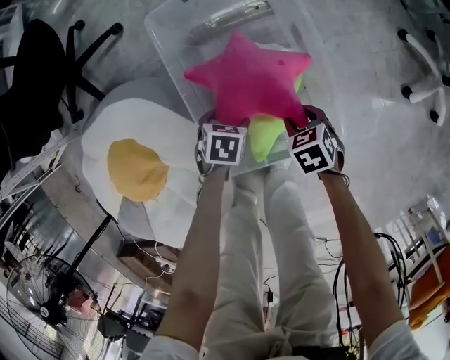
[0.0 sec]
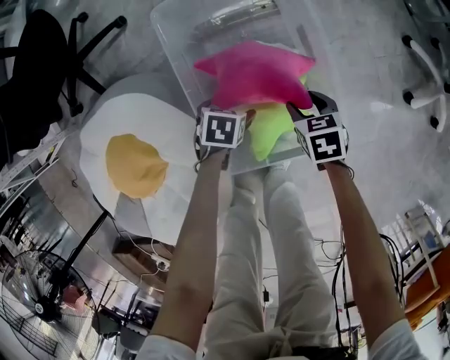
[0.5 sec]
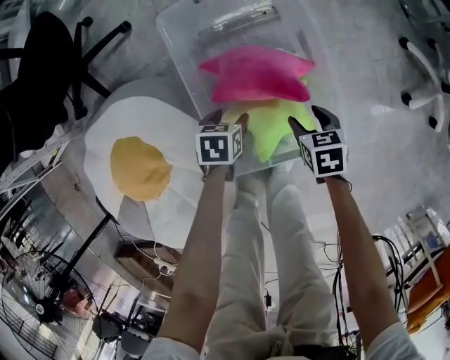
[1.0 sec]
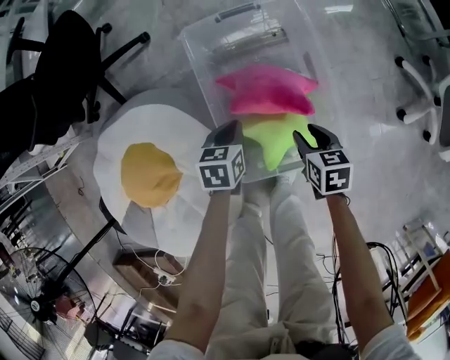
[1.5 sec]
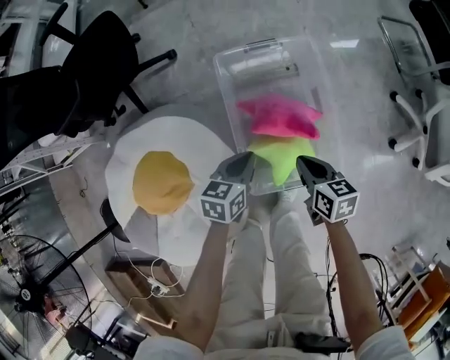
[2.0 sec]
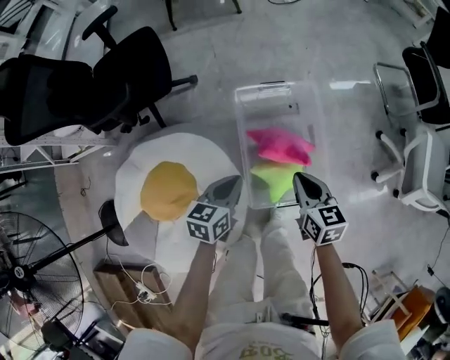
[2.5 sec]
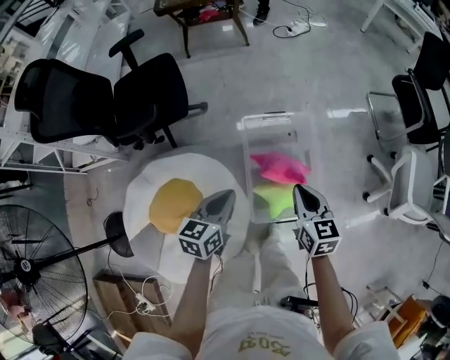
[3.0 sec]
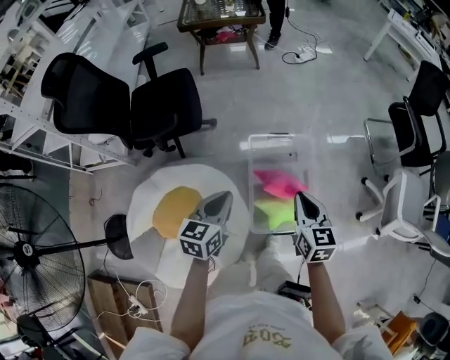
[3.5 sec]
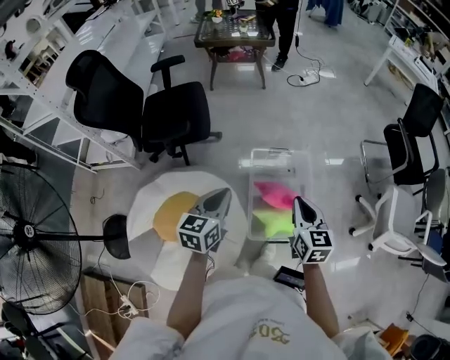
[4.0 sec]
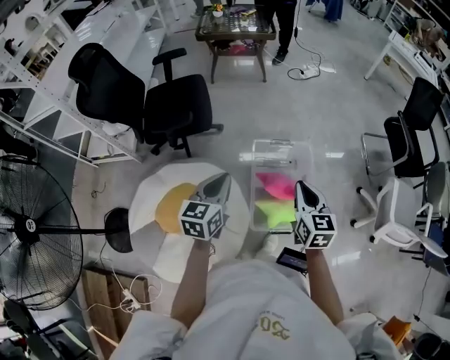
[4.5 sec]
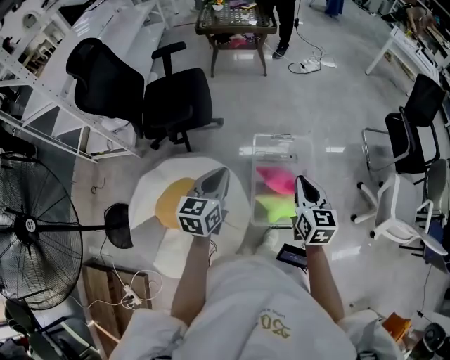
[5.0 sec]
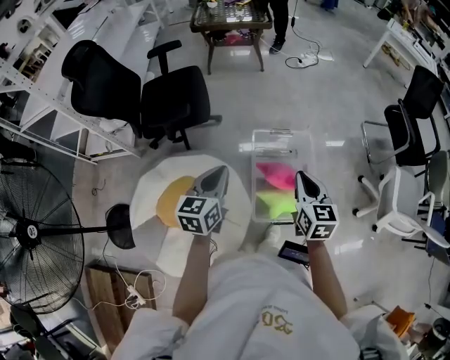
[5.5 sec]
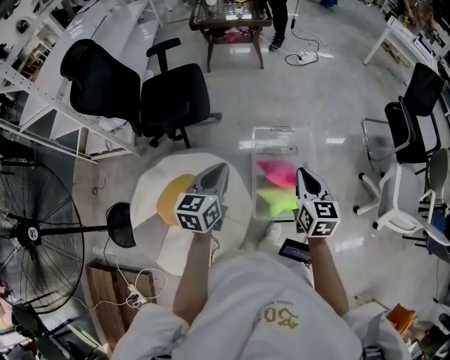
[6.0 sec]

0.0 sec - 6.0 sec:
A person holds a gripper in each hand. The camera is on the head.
0.0 sec - 2.0 sec: The two grippers go approximately 25 cm upward. The right gripper rotates roughly 30 degrees, and closes its fingers. The left gripper points its fingers some 40 degrees further upward, and closes up.
2.0 sec - 4.0 sec: Both grippers travel together upward, about 40 cm. The right gripper rotates approximately 30 degrees. Meanwhile the left gripper turns by approximately 30 degrees.
4.0 sec - 6.0 sec: The grippers make only small movements.

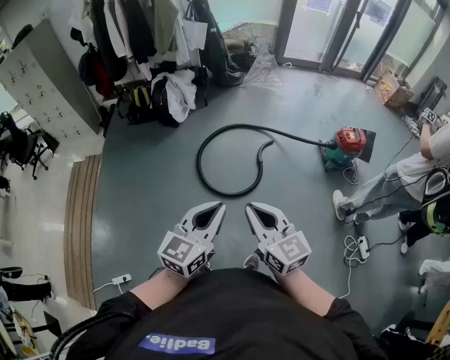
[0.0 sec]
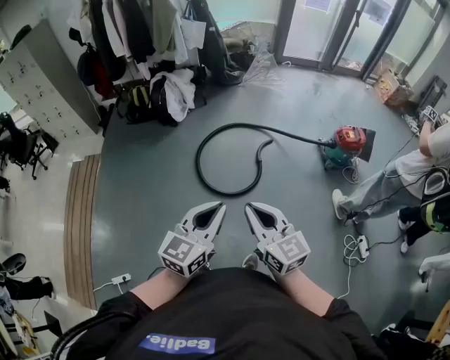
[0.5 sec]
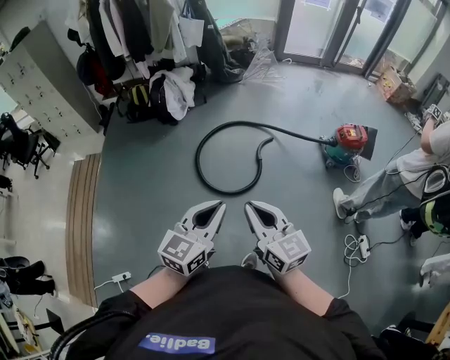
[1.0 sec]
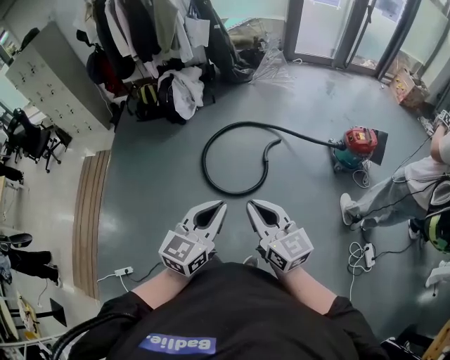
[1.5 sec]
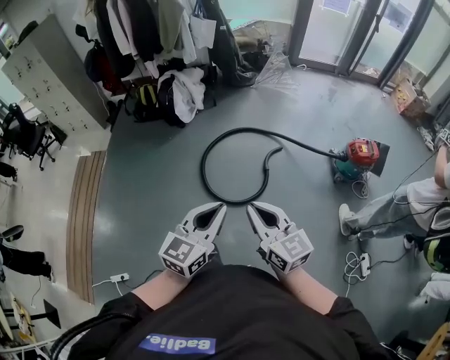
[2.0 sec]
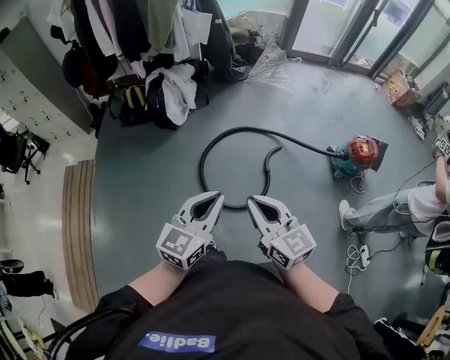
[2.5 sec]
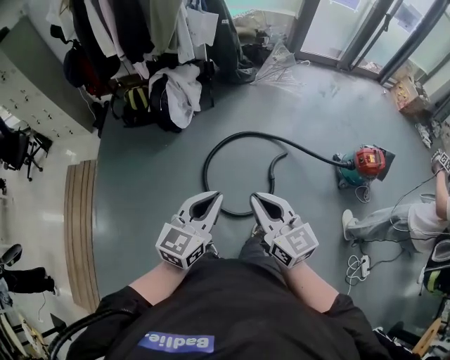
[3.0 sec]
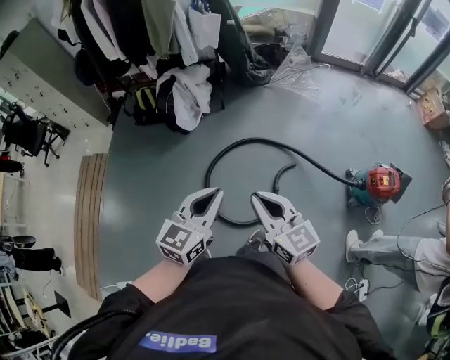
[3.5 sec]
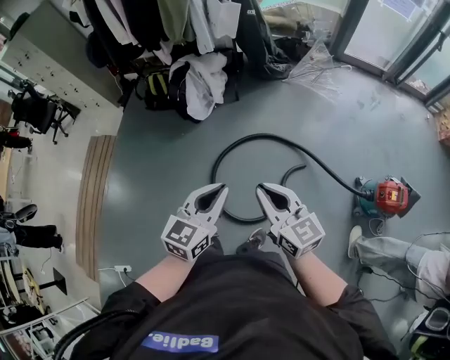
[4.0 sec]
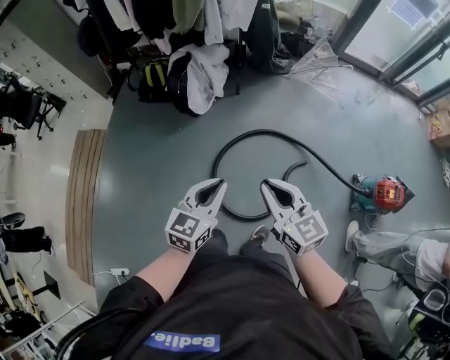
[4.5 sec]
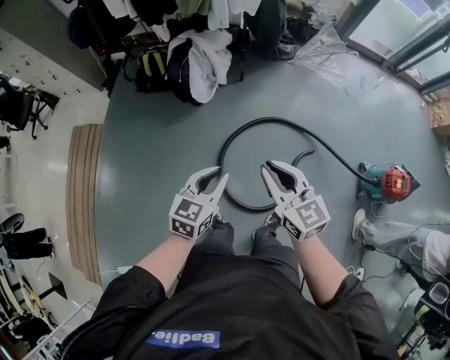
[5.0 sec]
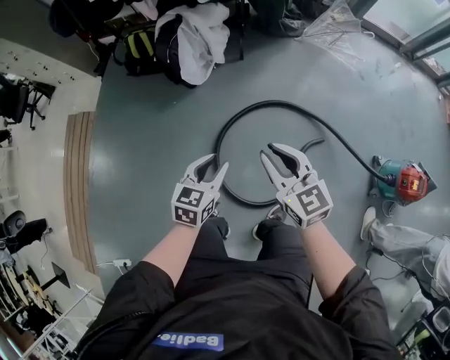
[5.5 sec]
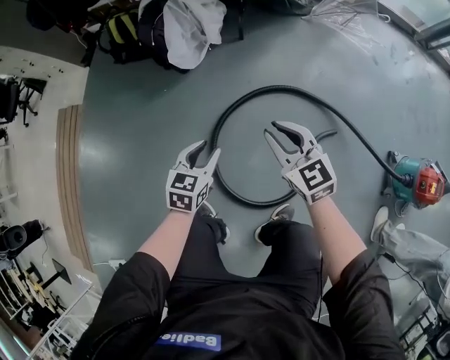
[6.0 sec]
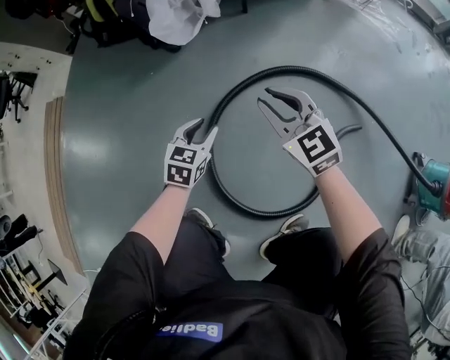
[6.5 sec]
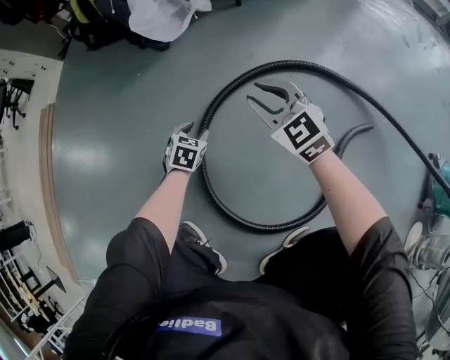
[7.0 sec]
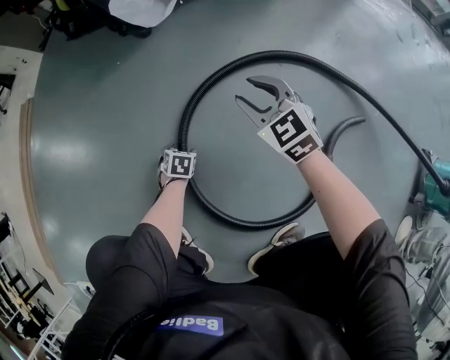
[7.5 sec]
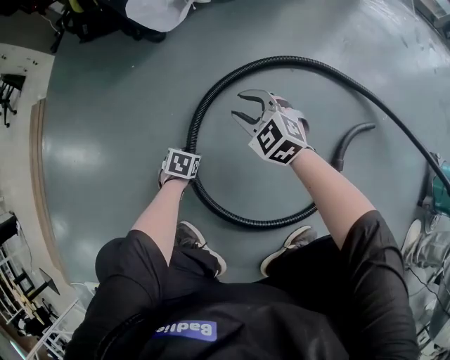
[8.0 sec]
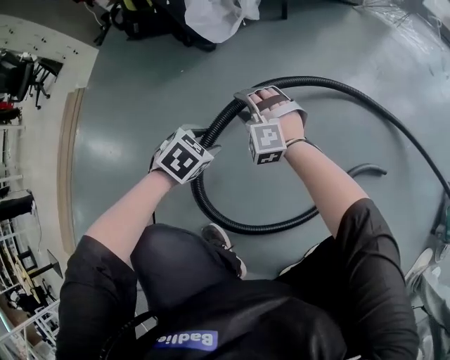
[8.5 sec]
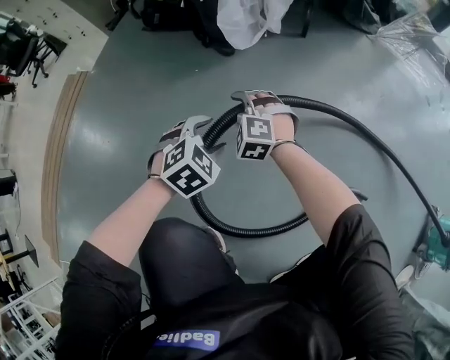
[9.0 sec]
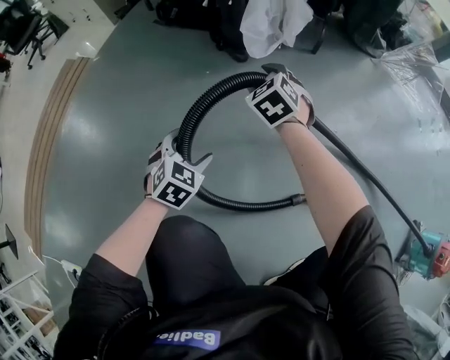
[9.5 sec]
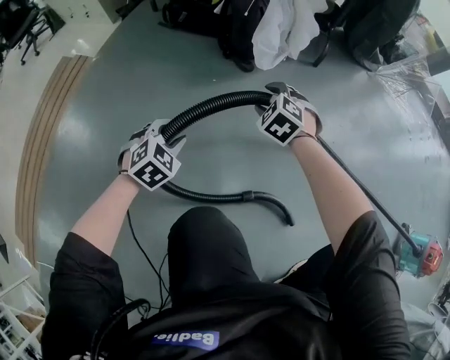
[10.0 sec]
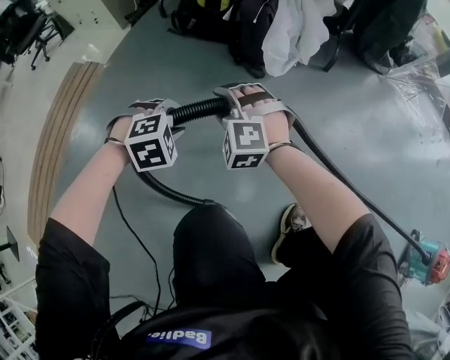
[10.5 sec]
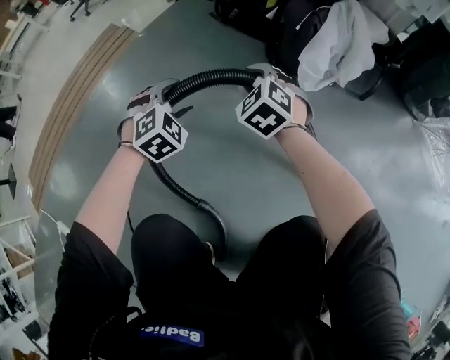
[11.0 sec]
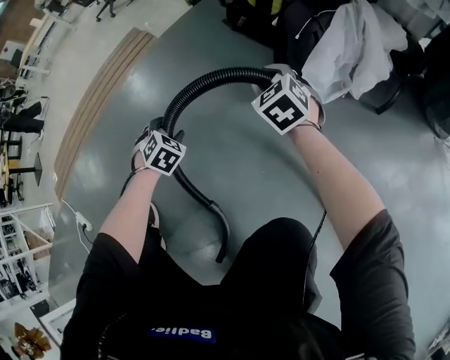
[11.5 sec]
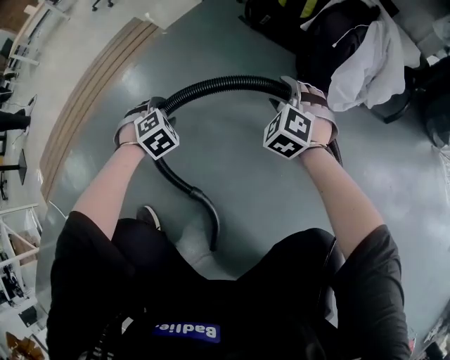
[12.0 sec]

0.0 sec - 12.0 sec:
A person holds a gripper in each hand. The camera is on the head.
0.0 sec - 2.0 sec: The grippers both shift forward by about 10 cm.
2.0 sec - 4.0 sec: Both grippers are carried forward, some 40 cm.
4.0 sec - 6.0 sec: Both grippers move downward and forward, approximately 50 cm. The left gripper swivels some 20 degrees; the right gripper turns by roughly 20 degrees.
6.0 sec - 8.0 sec: The two grippers go about 50 cm downward. The left gripper tilts its fingers some 40 degrees downward, while the right gripper rotates about 30 degrees.
8.0 sec - 10.0 sec: The right gripper ends up some 30 cm from where it was, and turns by about 30 degrees; the left gripper moves approximately 40 cm, rotates roughly 40 degrees, and opens, then closes once more.
10.0 sec - 12.0 sec: The left gripper ends up approximately 20 cm from where it was, and turns by approximately 40 degrees, while the right gripper changes place by approximately 20 cm, rotates roughly 30 degrees, and closes and opens again.

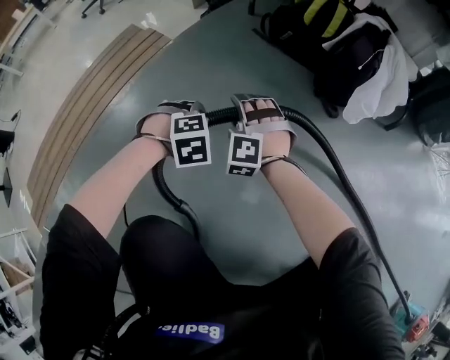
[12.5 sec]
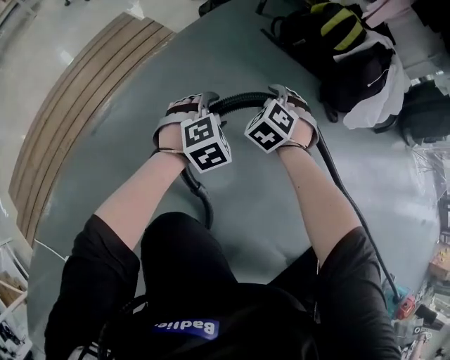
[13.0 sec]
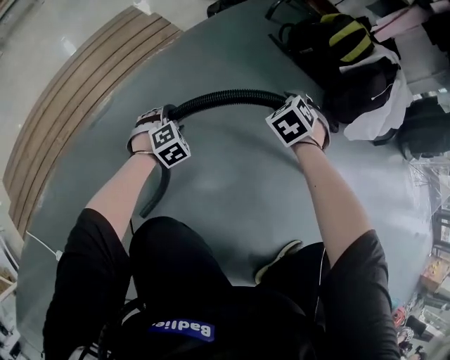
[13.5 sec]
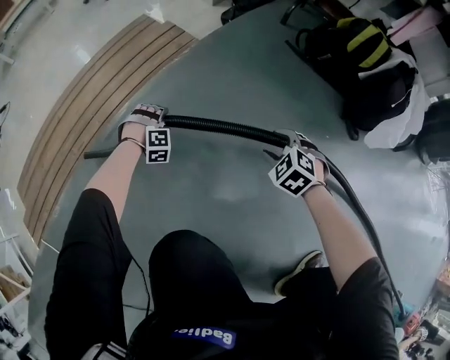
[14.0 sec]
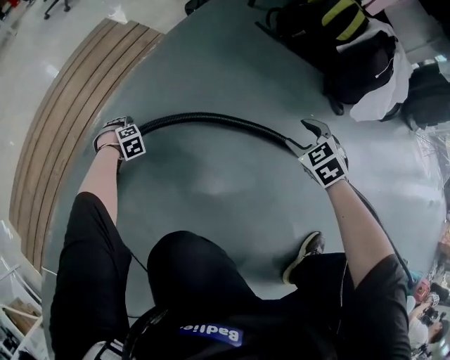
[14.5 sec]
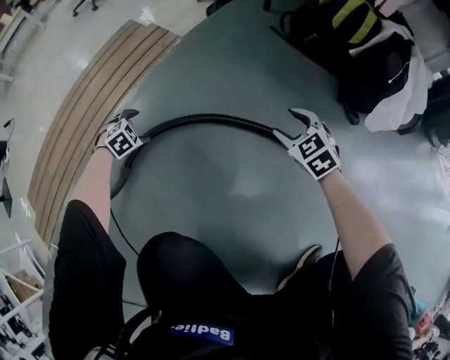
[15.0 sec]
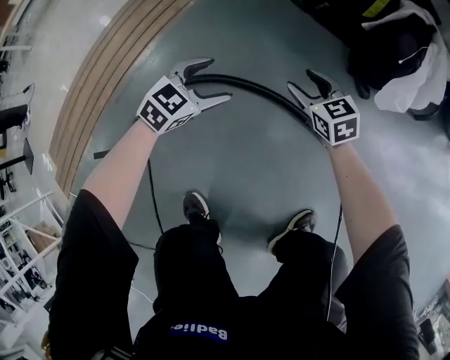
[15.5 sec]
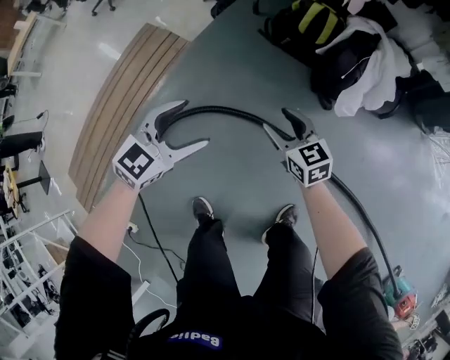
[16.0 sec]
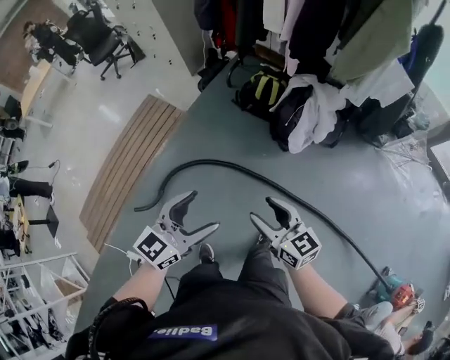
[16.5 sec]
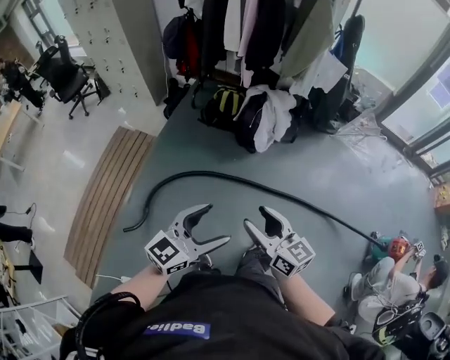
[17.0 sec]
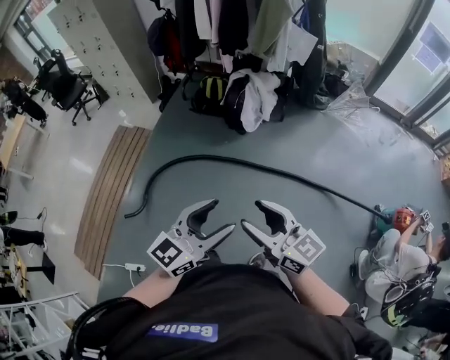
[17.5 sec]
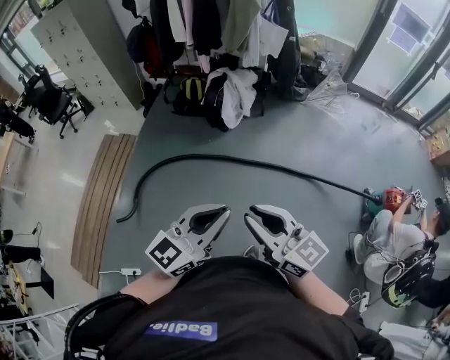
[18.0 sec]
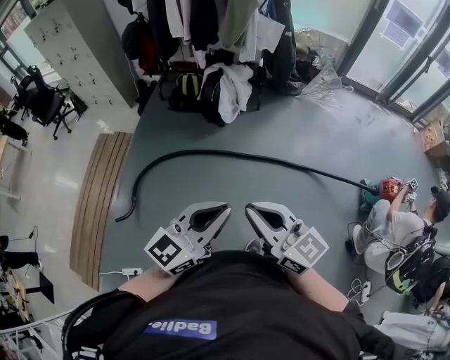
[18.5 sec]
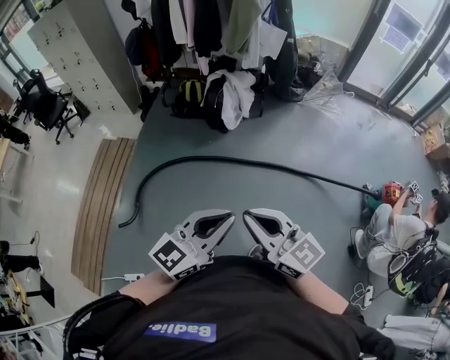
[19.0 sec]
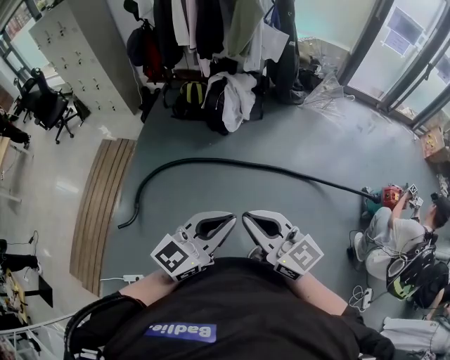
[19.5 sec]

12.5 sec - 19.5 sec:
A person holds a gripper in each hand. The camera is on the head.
12.5 sec - 14.5 sec: The left gripper shifts by approximately 50 cm, and opens its fingers. Meanwhile the right gripper goes about 5 cm downward, and twists approximately 50 degrees clockwise, seen from behind.
14.5 sec - 16.0 sec: The left gripper goes roughly 70 cm upward, and points its fingers approximately 50 degrees further upward. Meanwhile the right gripper heads upward, covering about 30 cm, and points its fingers about 30 degrees further upward.
16.0 sec - 17.5 sec: The two grippers travel together, backward and to the right, about 60 cm. The grippers both shift upward by roughly 50 cm. The right gripper rotates about 30 degrees. Meanwhile the left gripper changes its angle by roughly 30 degrees.
17.5 sec - 19.5 sec: Both grippers travel together backward, approximately 10 cm. The right gripper closes. Meanwhile the left gripper closes.

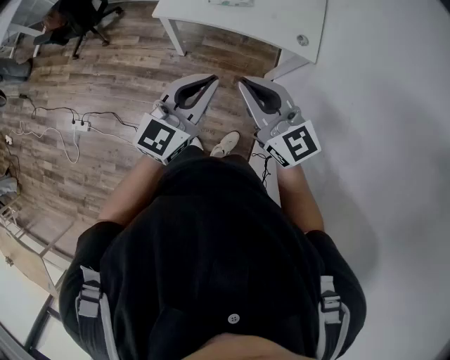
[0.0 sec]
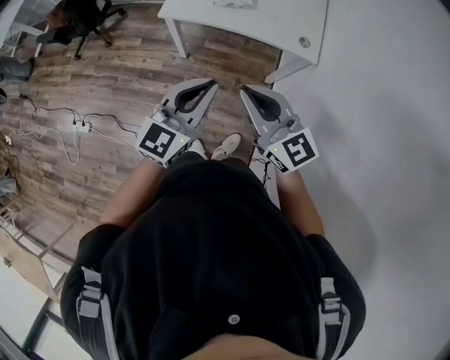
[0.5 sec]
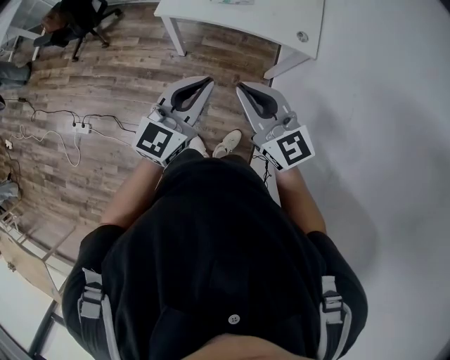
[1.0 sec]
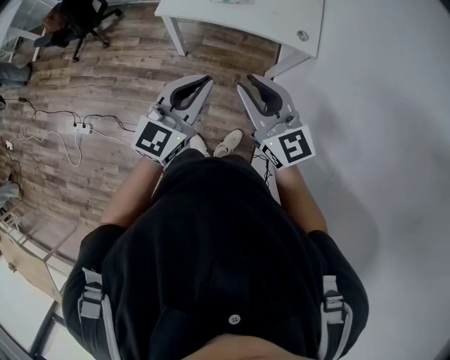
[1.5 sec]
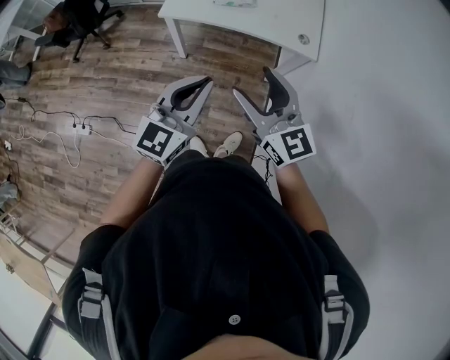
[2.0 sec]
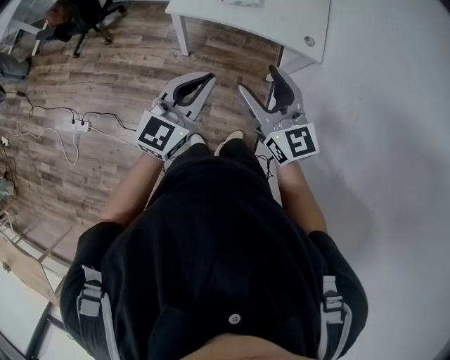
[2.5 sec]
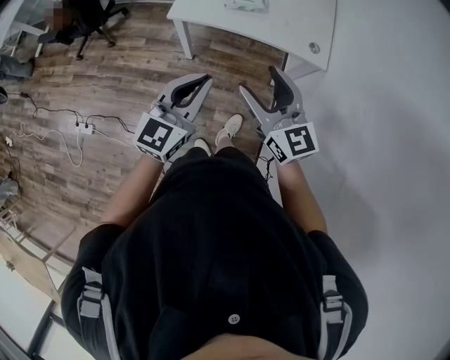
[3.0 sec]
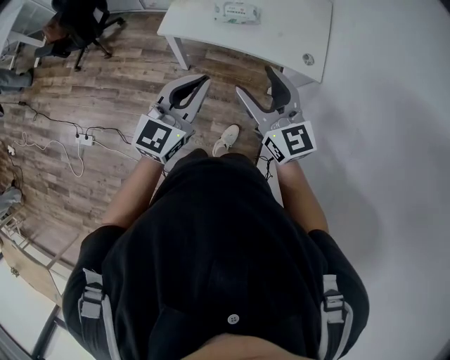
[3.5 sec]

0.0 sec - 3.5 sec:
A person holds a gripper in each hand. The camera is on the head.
0.0 sec - 2.0 sec: The right gripper opens up. The left gripper changes place by about 5 cm.
2.0 sec - 3.5 sec: Both grippers travel together forward, about 15 cm.
